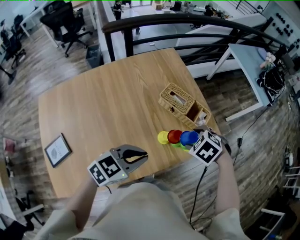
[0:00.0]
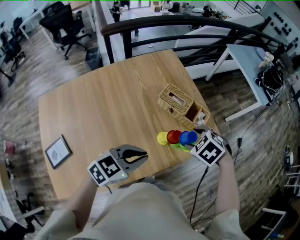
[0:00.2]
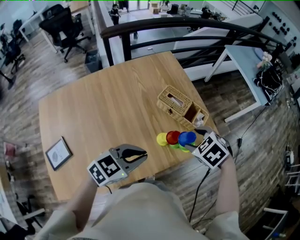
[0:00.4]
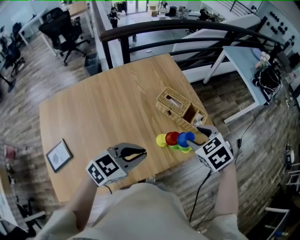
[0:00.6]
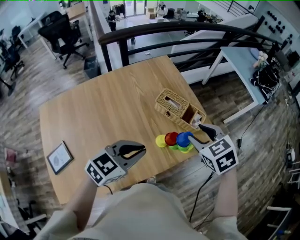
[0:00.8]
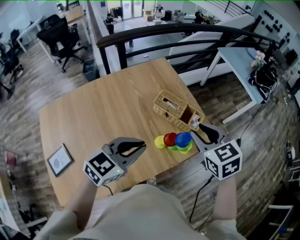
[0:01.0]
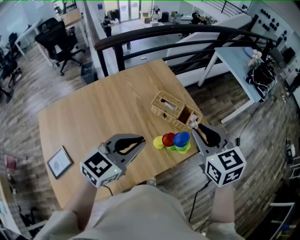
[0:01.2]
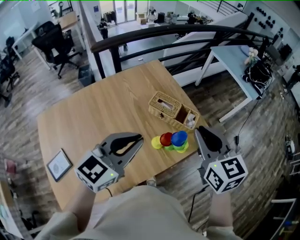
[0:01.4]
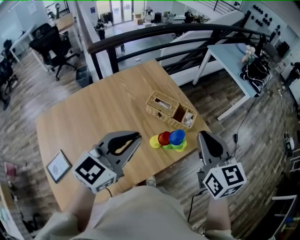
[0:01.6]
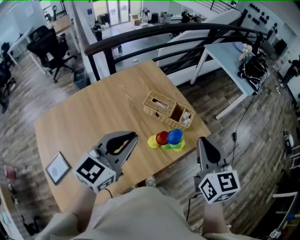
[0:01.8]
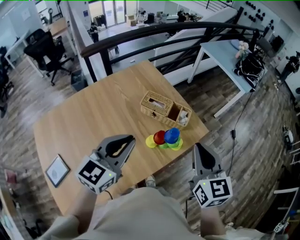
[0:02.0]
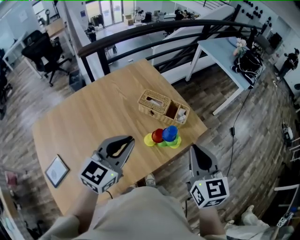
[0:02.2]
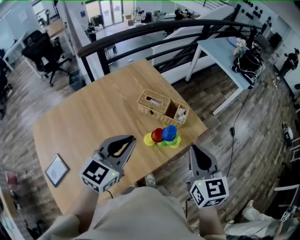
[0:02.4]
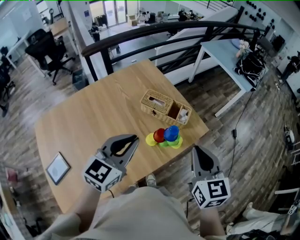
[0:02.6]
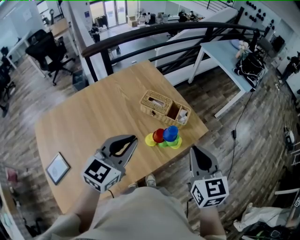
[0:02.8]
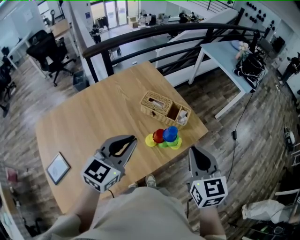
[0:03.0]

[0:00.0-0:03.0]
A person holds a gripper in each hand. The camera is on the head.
0:00.0 to 0:01.6: Both grippers move upward, approximately 20 cm. The left gripper turns by roughly 30 degrees. The right gripper points its fingers roughly 60 degrees further upward, and closes up.
0:01.6 to 0:03.0: The right gripper heads backward and downward, covering approximately 10 cm. The left gripper changes place by some 5 cm.

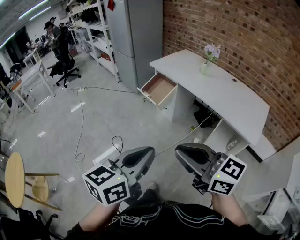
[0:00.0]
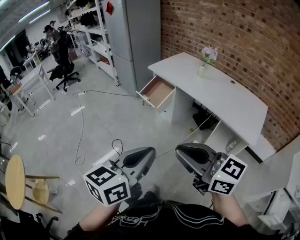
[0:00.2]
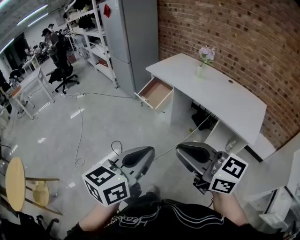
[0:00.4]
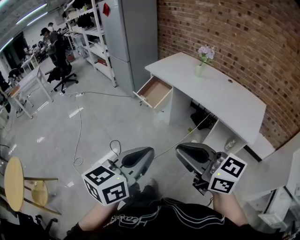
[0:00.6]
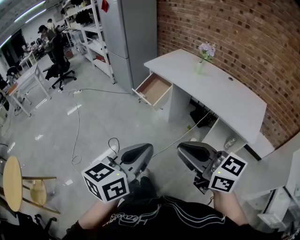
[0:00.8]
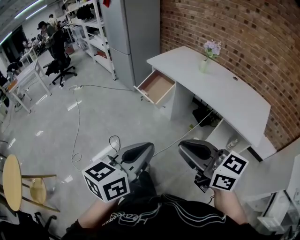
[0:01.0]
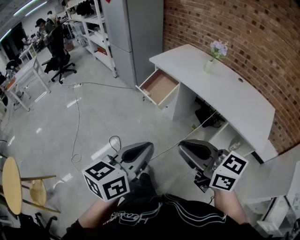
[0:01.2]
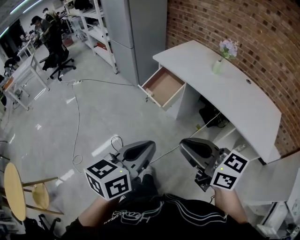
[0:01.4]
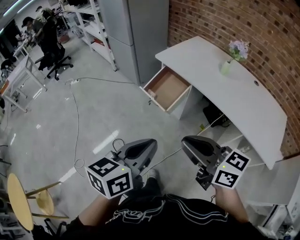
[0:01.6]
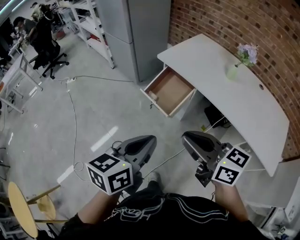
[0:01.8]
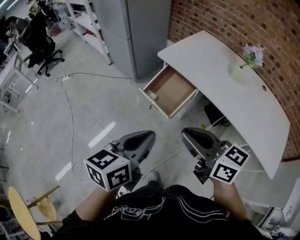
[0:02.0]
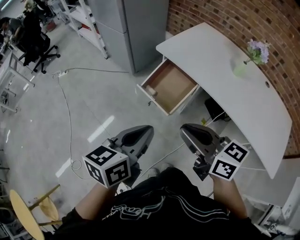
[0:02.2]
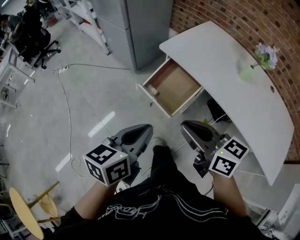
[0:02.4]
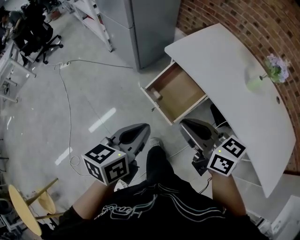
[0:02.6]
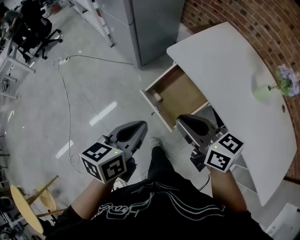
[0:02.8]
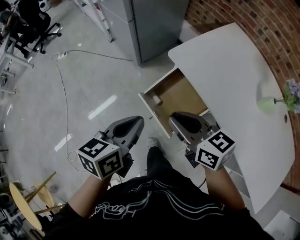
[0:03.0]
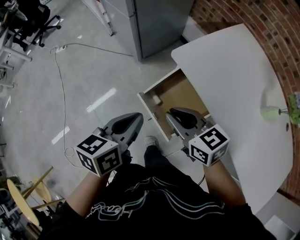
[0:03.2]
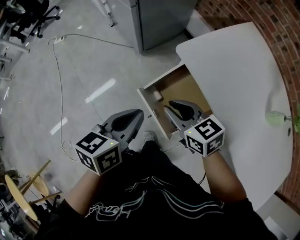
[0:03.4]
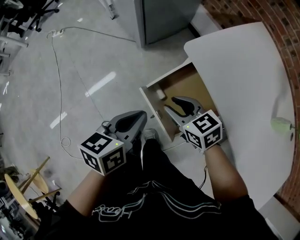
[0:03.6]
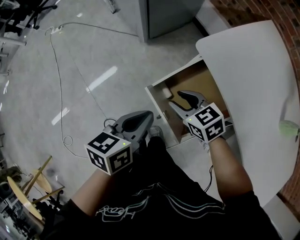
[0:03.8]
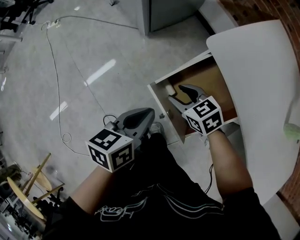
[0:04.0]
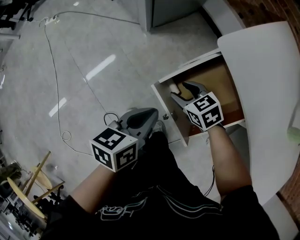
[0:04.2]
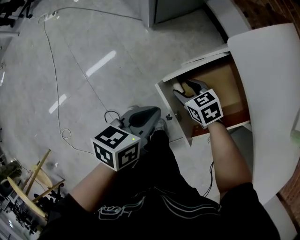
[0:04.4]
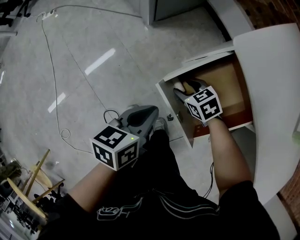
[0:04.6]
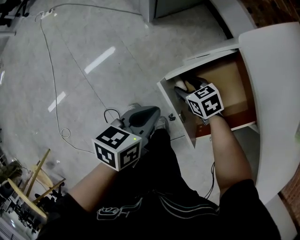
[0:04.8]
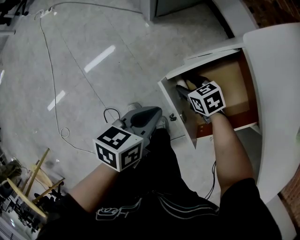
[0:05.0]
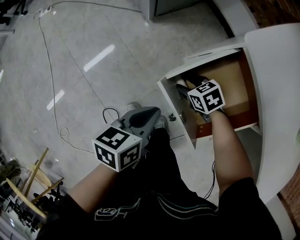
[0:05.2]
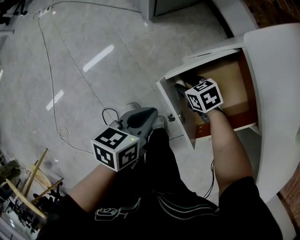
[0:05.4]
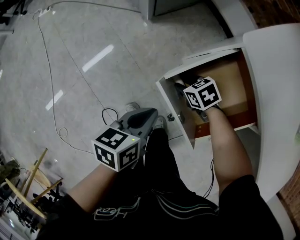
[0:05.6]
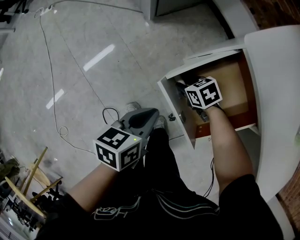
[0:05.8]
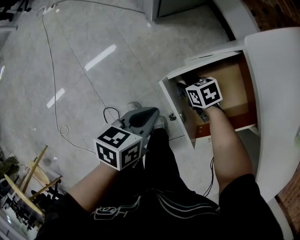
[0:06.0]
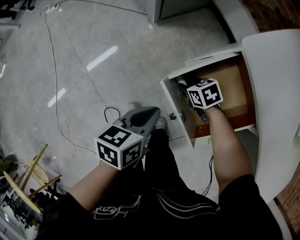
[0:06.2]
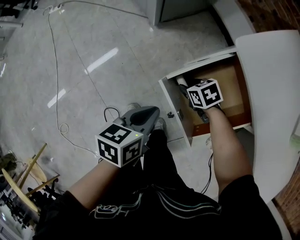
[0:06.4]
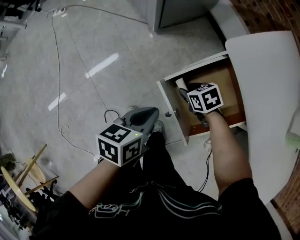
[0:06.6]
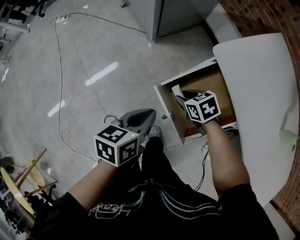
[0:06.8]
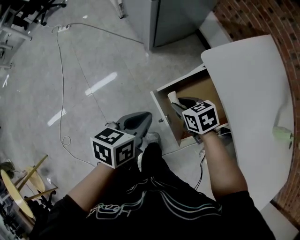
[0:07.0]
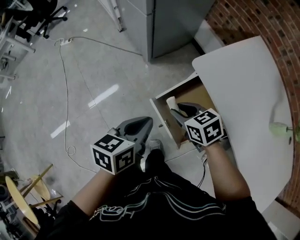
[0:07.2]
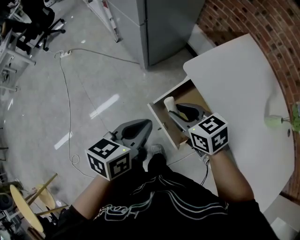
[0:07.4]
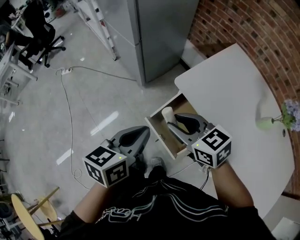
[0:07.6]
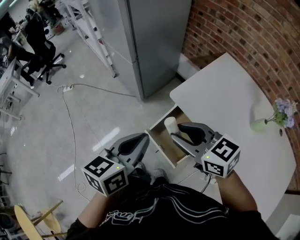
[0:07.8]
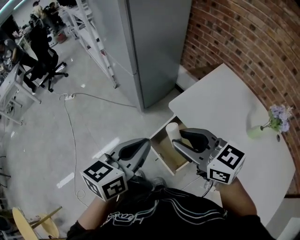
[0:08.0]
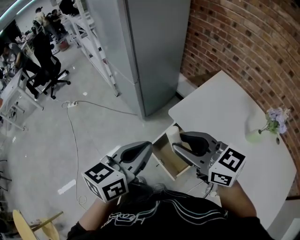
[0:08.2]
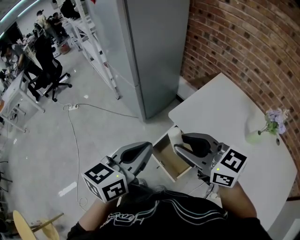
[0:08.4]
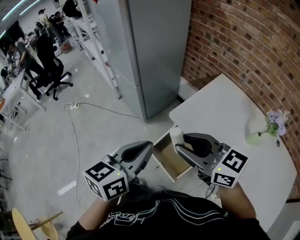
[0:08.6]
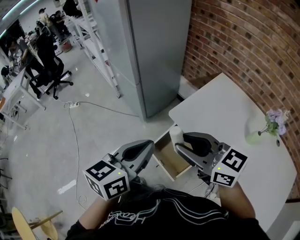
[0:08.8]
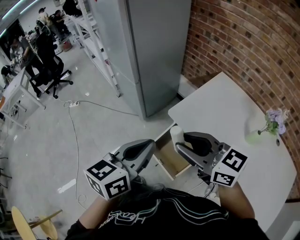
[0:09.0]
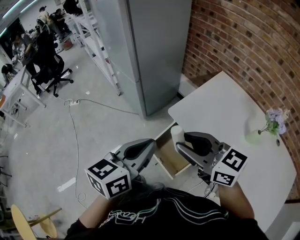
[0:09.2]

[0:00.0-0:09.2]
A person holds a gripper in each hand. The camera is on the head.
0:00.0 to 0:01.6: Both grippers move forward, roughly 35 cm.
0:01.6 to 0:03.0: The pair of grippers is taken forward, about 50 cm.
0:03.0 to 0:04.6: The two grippers go some 35 cm downward and forward. The right gripper tips its fingers downward by some 40 degrees, and opens.
0:04.6 to 0:06.2: The right gripper closes.
0:06.2 to 0:07.6: Both grippers move upward, roughly 40 cm. The right gripper tilts its fingers roughly 30 degrees upward. Meanwhile the left gripper changes its angle by about 20 degrees.
0:07.6 to 0:09.2: The grippers both shift upward by roughly 15 cm. The right gripper swivels approximately 20 degrees.

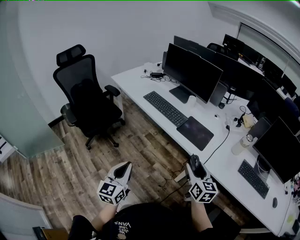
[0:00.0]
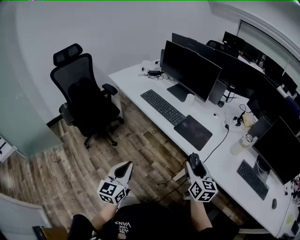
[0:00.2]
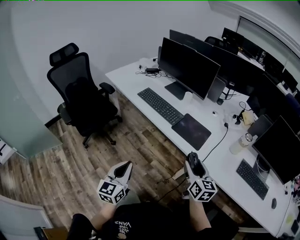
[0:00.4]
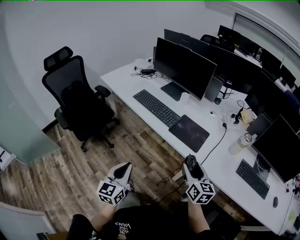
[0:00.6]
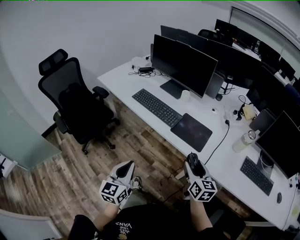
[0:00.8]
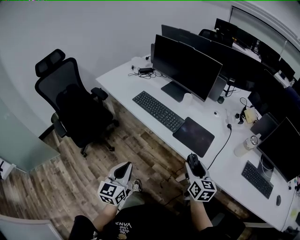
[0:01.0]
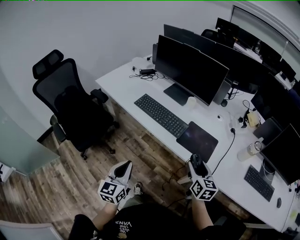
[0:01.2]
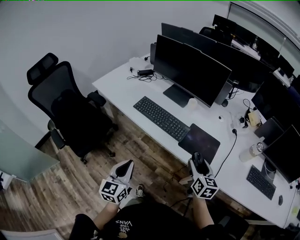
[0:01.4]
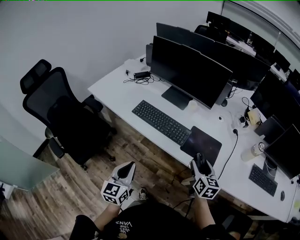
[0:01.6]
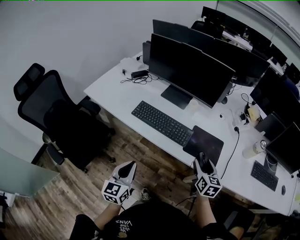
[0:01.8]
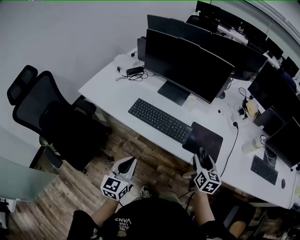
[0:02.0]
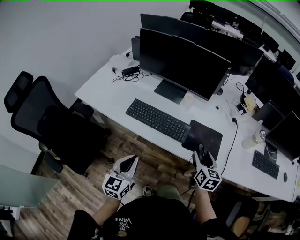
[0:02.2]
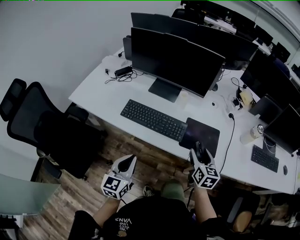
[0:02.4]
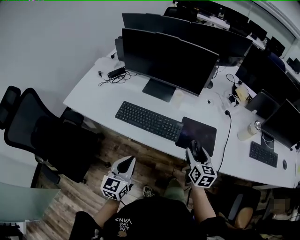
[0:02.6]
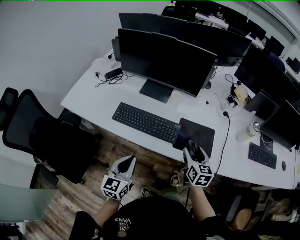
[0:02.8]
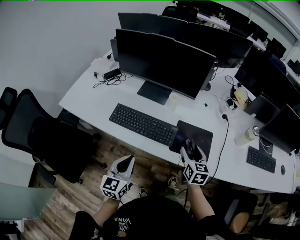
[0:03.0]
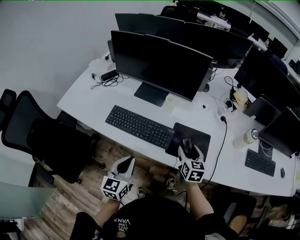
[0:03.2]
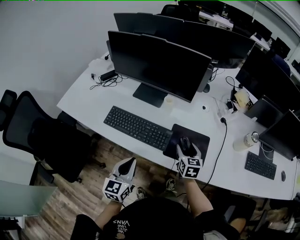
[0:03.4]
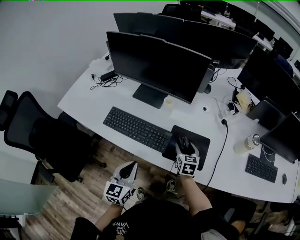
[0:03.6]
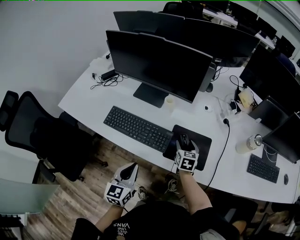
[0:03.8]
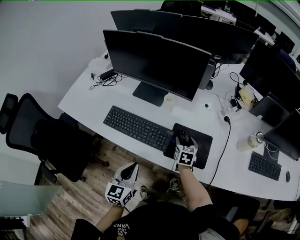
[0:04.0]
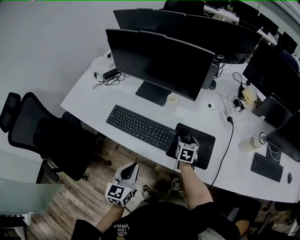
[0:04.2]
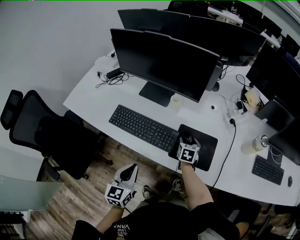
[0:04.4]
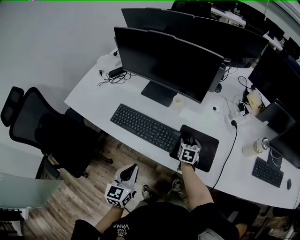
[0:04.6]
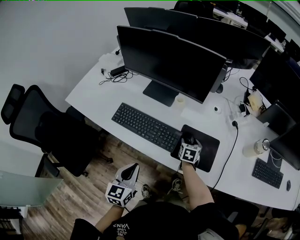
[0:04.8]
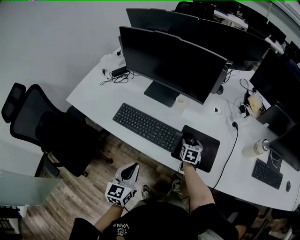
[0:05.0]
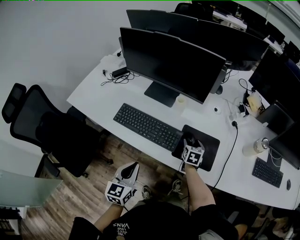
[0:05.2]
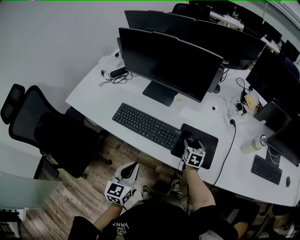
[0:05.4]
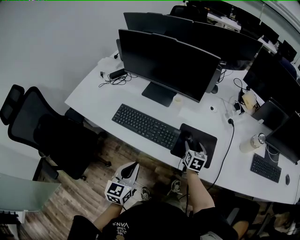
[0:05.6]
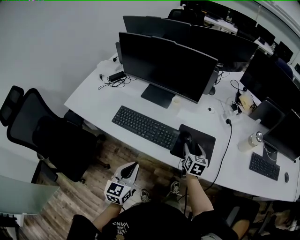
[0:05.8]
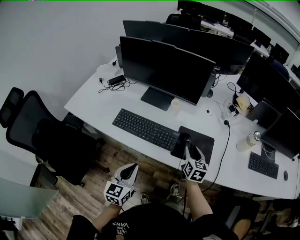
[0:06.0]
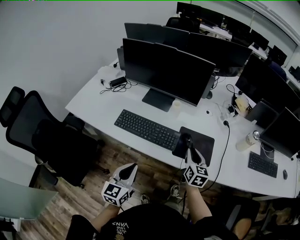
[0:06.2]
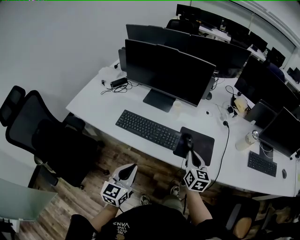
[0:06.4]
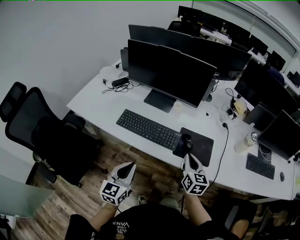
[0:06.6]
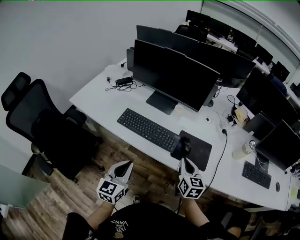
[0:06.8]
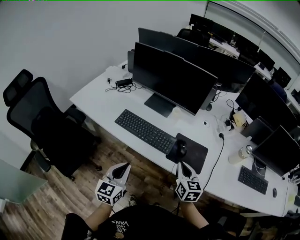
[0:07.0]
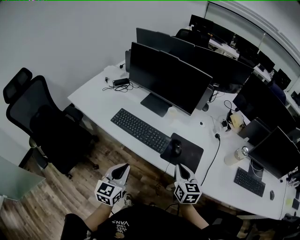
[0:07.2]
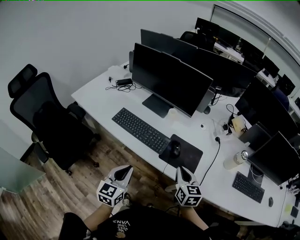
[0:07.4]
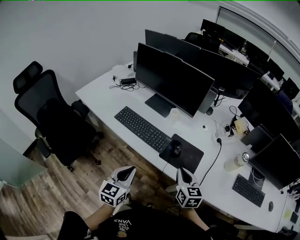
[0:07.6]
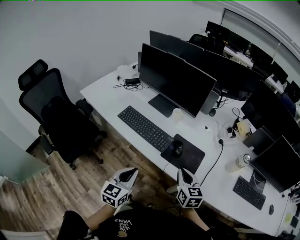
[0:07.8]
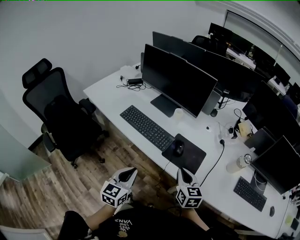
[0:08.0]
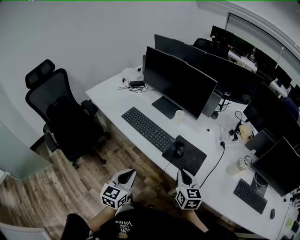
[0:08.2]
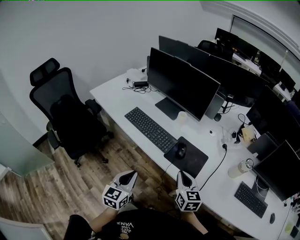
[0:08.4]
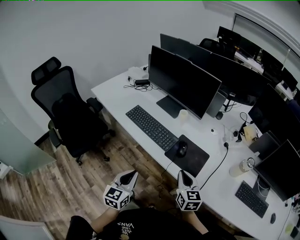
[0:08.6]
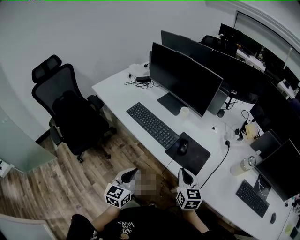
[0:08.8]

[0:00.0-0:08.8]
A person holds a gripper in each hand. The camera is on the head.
0:00.0 to 0:01.4: Both grippers move forward, approximately 20 cm.
0:01.4 to 0:03.0: The left gripper goes roughly 15 cm forward. Meanwhile the right gripper shifts about 10 cm forward.
0:03.0 to 0:04.4: The right gripper shifts about 20 cm downward and forward.
0:04.4 to 0:05.8: The right gripper heads upward and backward, covering roughly 10 cm.
0:05.8 to 0:07.4: The left gripper shifts by about 10 cm. Meanwhile the right gripper shifts about 15 cm backward and upward, changes its angle by some 20 degrees, and closes.
0:07.4 to 0:08.8: The left gripper moves backward, some 5 cm.

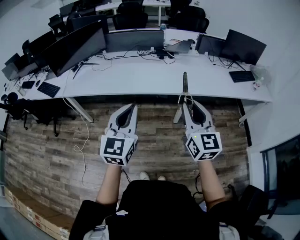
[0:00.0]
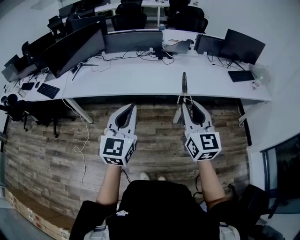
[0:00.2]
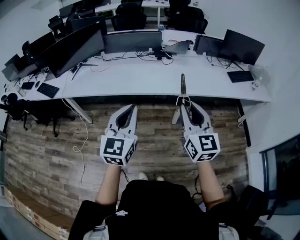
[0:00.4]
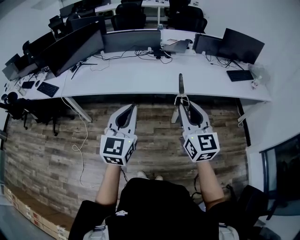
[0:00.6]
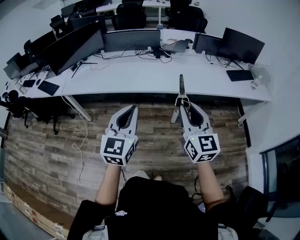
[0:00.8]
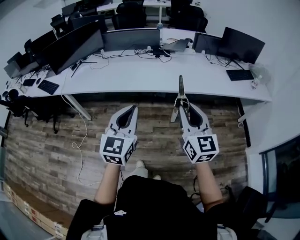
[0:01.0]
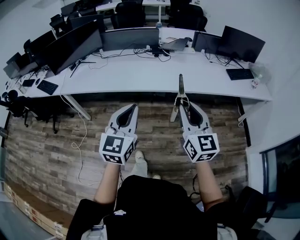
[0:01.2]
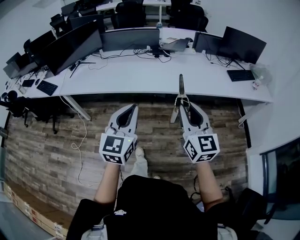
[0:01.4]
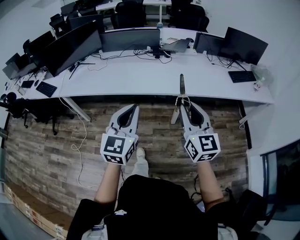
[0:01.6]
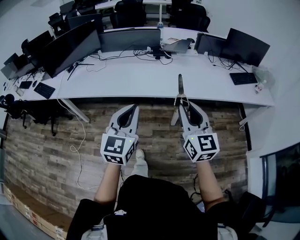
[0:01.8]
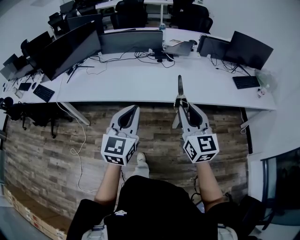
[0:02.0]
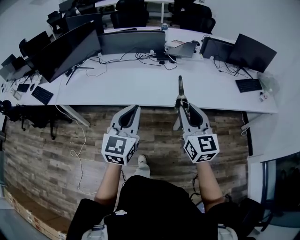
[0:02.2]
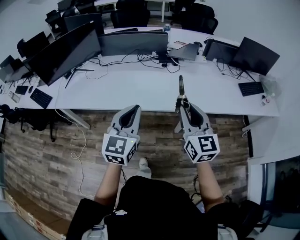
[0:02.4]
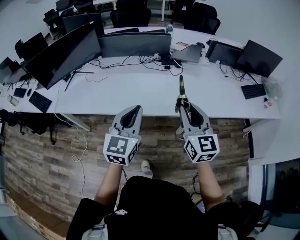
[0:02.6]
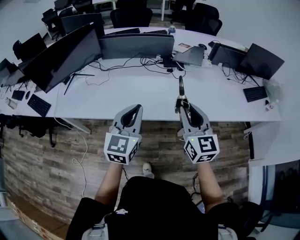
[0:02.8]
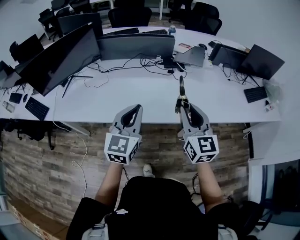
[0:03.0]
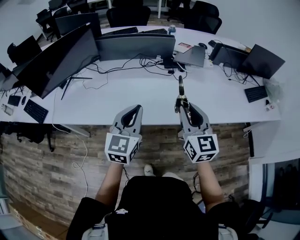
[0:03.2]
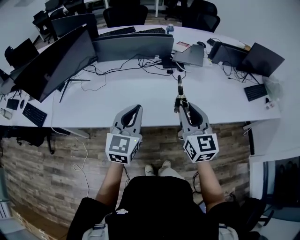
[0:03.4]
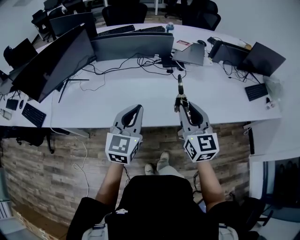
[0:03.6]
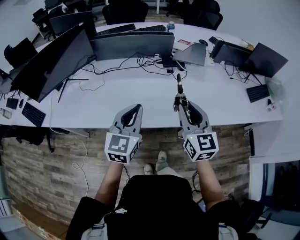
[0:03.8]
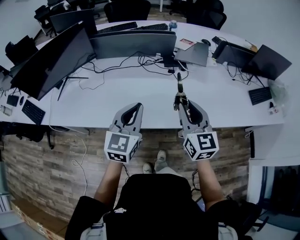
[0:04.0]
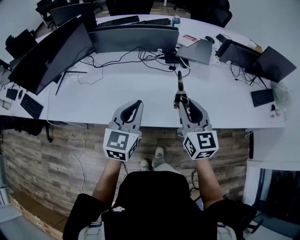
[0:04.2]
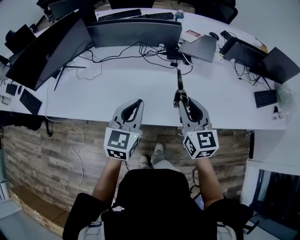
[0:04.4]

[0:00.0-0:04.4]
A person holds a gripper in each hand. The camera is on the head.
0:00.0 to 0:01.4: The grippers both shift to the right by some 5 cm.
0:01.4 to 0:03.0: The two grippers go about 35 cm forward and to the left.
0:03.0 to 0:04.4: Both grippers travel together forward and downward, about 15 cm.
